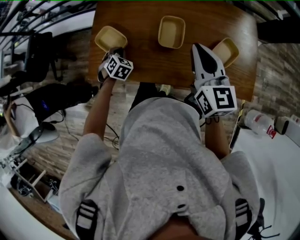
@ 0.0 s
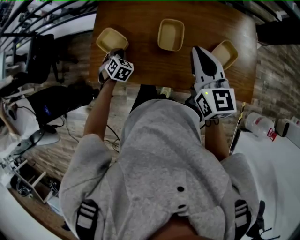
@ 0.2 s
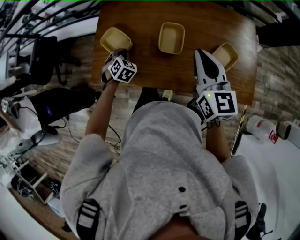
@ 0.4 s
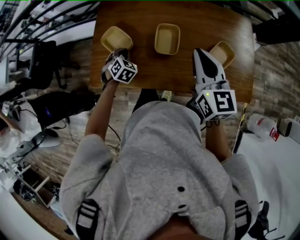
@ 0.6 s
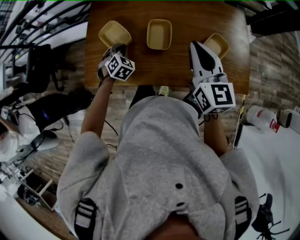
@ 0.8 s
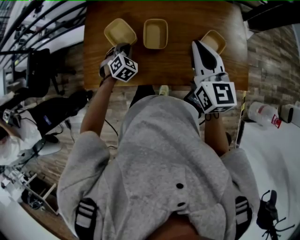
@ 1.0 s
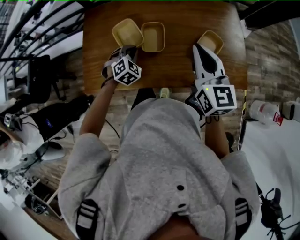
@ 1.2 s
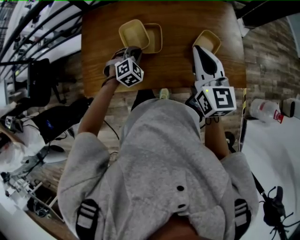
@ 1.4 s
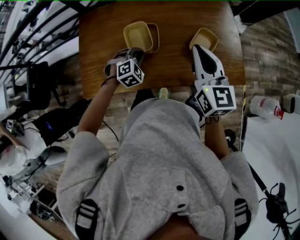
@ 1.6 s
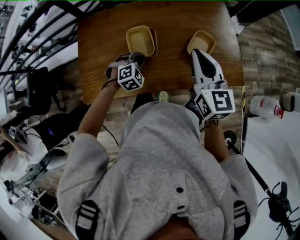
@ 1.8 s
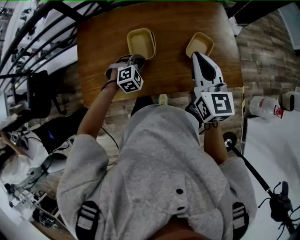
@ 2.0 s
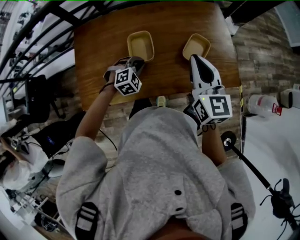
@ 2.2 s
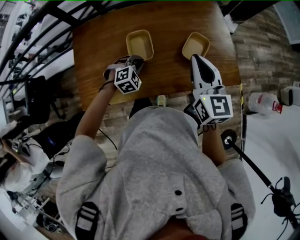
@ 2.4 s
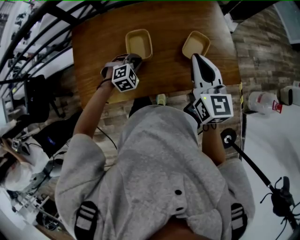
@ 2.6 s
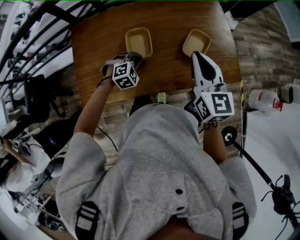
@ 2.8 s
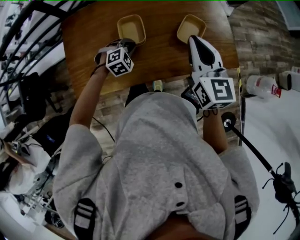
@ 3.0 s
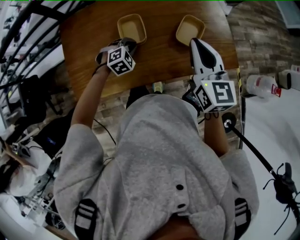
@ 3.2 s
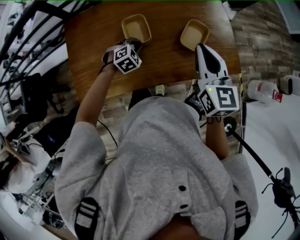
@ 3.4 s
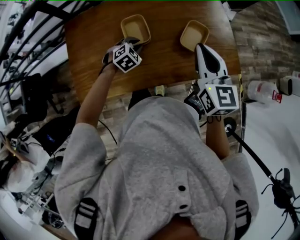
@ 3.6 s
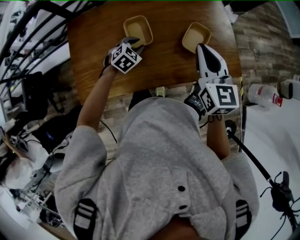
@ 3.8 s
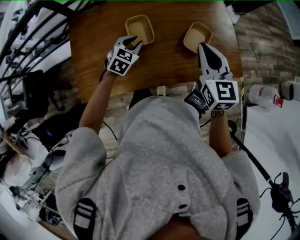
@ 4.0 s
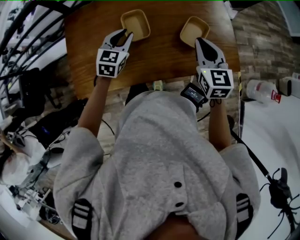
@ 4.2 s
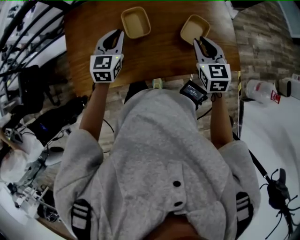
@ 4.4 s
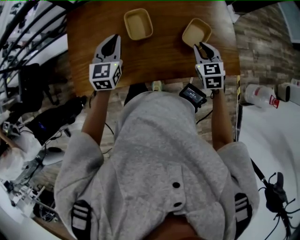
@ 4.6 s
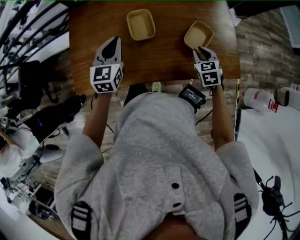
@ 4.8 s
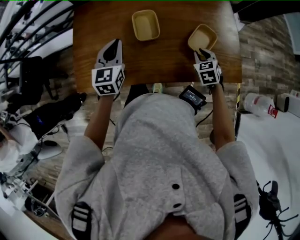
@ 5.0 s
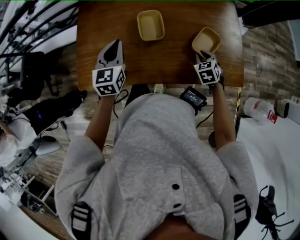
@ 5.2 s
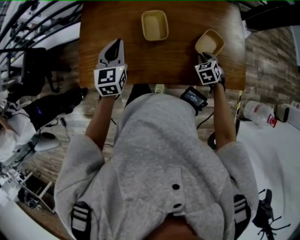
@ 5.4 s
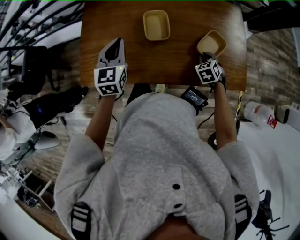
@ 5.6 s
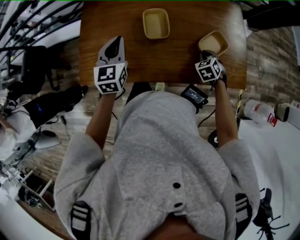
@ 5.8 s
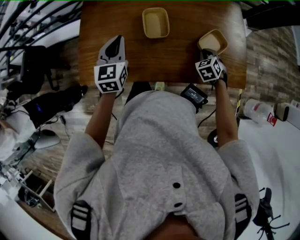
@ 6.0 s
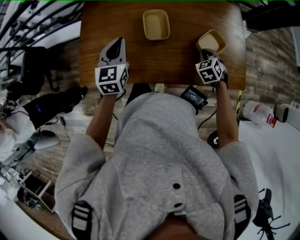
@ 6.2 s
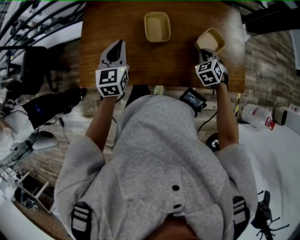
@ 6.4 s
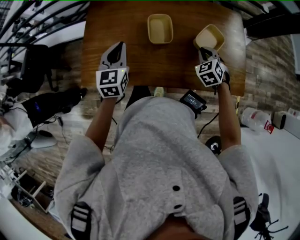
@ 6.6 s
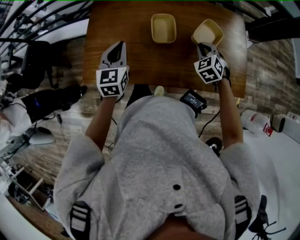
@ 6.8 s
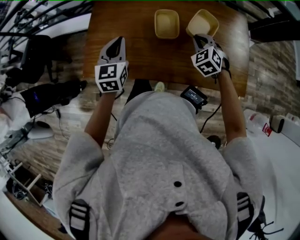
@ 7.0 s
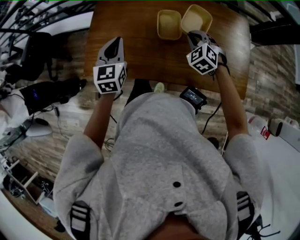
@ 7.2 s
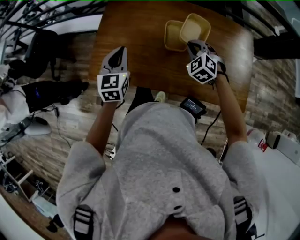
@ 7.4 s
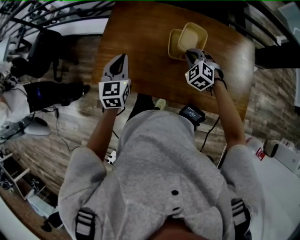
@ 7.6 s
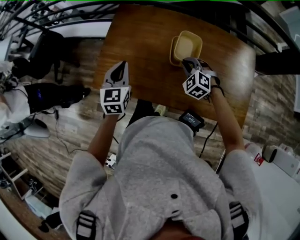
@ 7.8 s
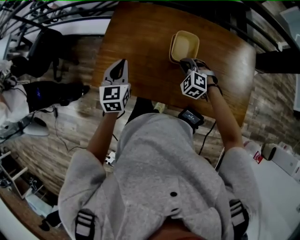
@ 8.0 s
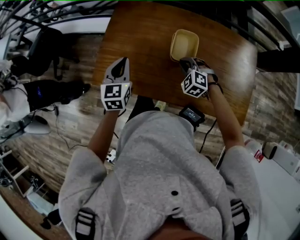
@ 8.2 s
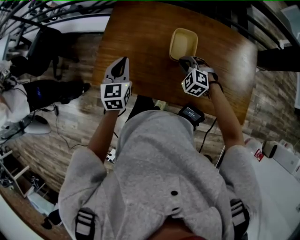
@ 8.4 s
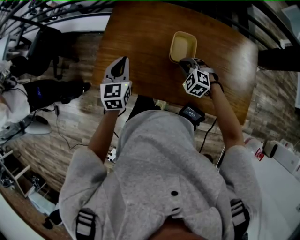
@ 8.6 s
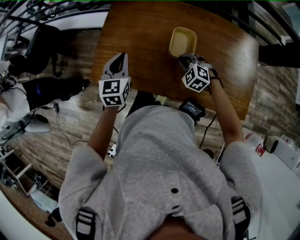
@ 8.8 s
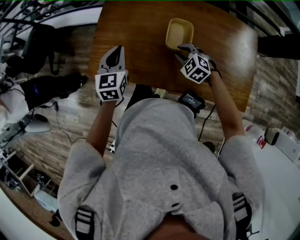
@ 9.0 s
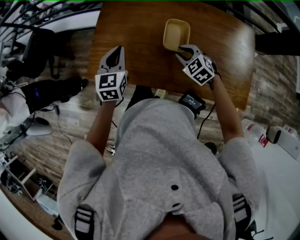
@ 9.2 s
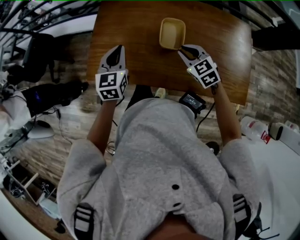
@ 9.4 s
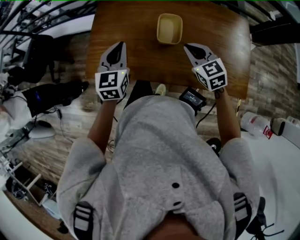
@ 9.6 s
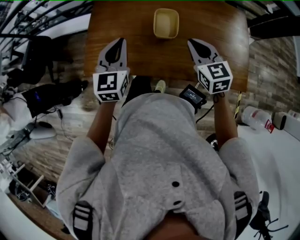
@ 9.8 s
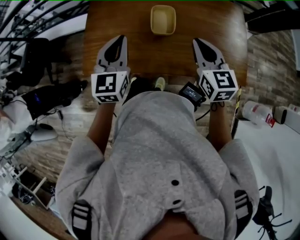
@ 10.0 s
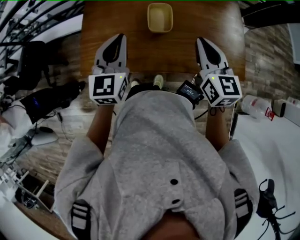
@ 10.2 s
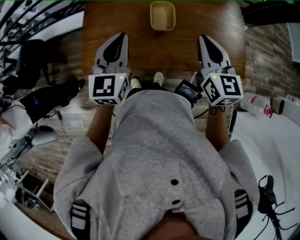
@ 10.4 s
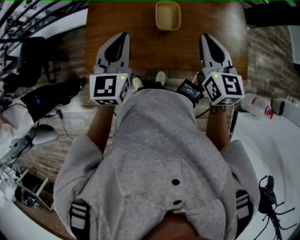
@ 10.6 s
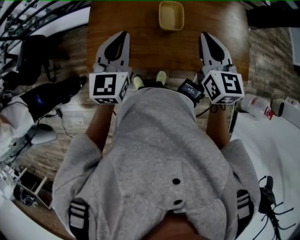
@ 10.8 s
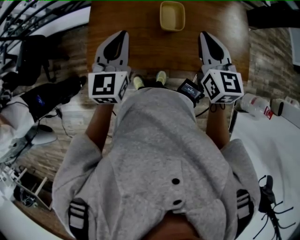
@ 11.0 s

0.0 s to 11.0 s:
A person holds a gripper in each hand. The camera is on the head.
0.0 to 1.6 s: The left gripper changes place by approximately 25 cm, and changes its angle by about 40 degrees. The right gripper moves some 15 cm.
1.6 to 3.2 s: The left gripper moves some 5 cm.
3.2 to 4.8 s: The right gripper goes about 20 cm downward, and tilts its fingers about 30 degrees downward; the left gripper goes some 20 cm upward and to the left, and tips its fingers upward by about 40 degrees.
6.2 to 7.8 s: The left gripper heads to the left, covering approximately 10 cm, while the right gripper travels to the left by approximately 20 cm, and swivels about 40 degrees.
7.8 to 9.4 s: The right gripper moves about 5 cm, and rotates about 30 degrees.
9.4 to 11.0 s: The right gripper moves upward, some 20 cm, and turns by some 40 degrees. The left gripper heads upward, covering roughly 10 cm.

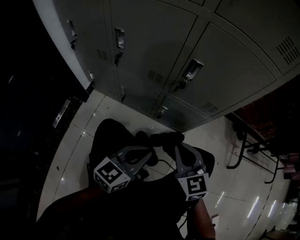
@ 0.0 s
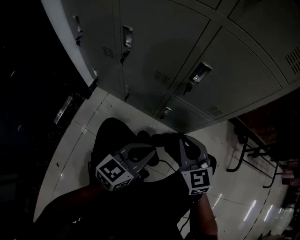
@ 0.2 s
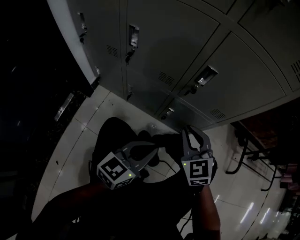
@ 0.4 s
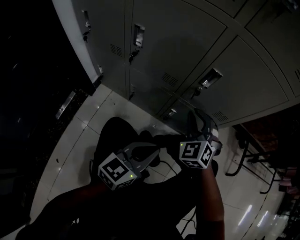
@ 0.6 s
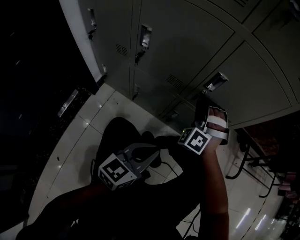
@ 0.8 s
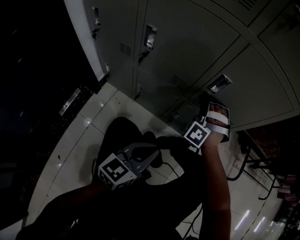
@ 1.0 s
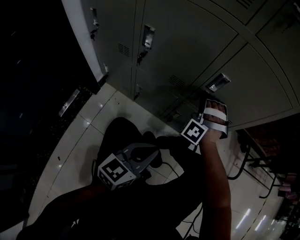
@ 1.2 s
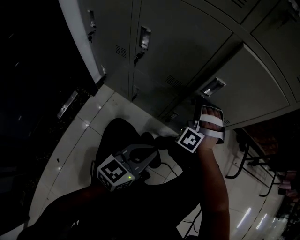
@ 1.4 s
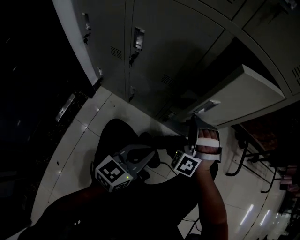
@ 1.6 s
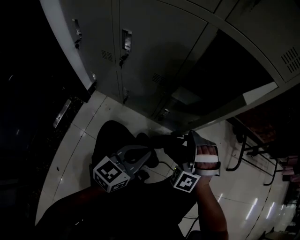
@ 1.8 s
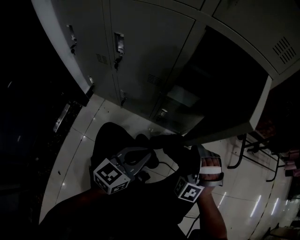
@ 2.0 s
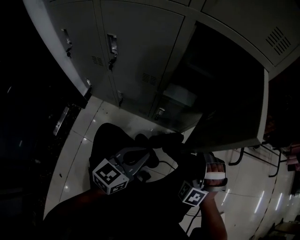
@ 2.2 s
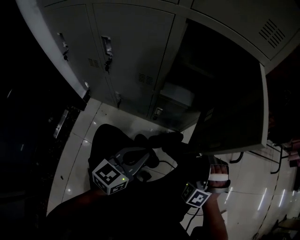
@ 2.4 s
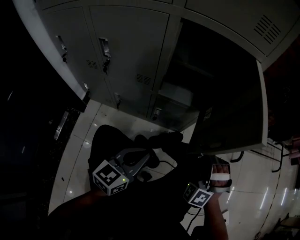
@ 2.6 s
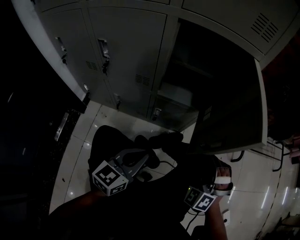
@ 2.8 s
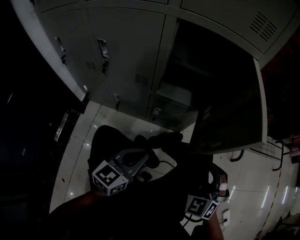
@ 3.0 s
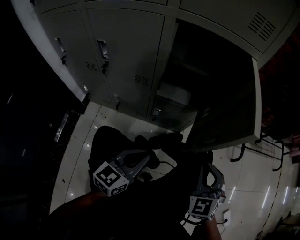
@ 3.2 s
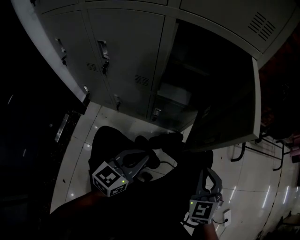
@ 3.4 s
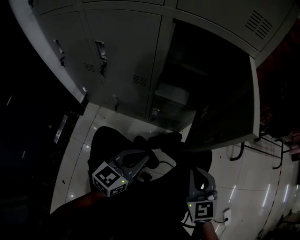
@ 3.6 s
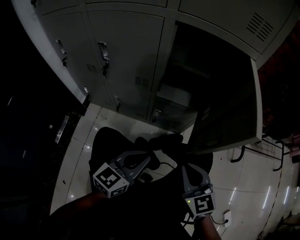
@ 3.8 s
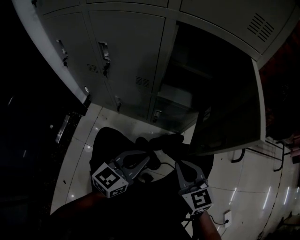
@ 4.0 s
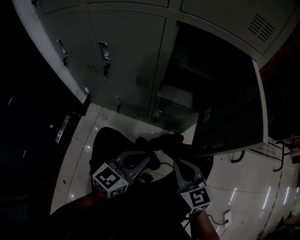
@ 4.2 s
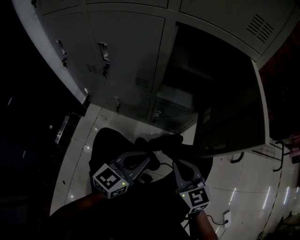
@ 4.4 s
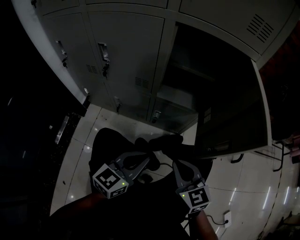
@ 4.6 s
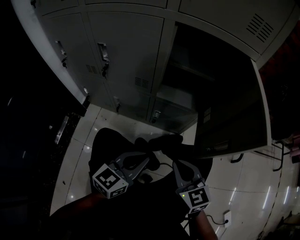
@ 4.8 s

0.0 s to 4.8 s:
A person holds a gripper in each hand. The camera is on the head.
0.0 to 1.6 s: The right gripper moves forward, some 10 cm, rotates around the line of its fingers by about 70 degrees, counterclockwise from behind, and opens and closes again.
1.6 to 3.2 s: The right gripper travels to the right and backward by about 25 cm, and rolls clockwise, seen from behind, by about 50 degrees. The left gripper is displaced to the right by some 5 cm.
3.2 to 4.8 s: The right gripper moves to the left, approximately 10 cm, and turns by about 40 degrees.

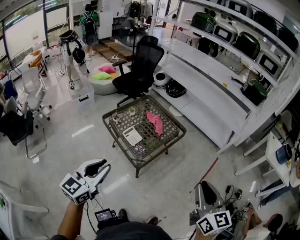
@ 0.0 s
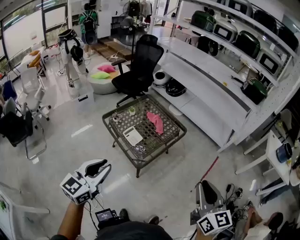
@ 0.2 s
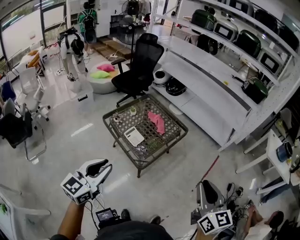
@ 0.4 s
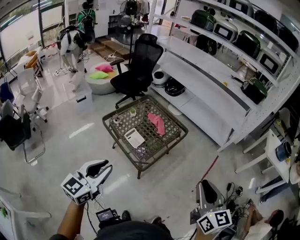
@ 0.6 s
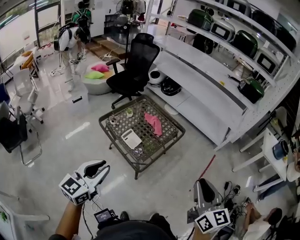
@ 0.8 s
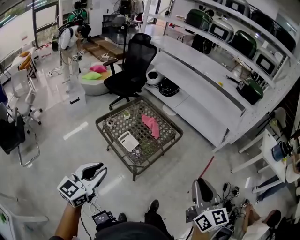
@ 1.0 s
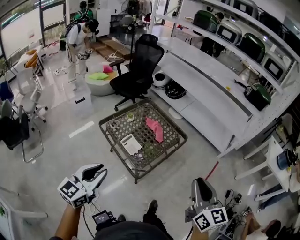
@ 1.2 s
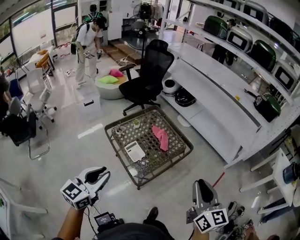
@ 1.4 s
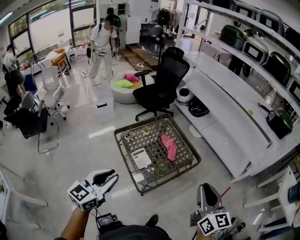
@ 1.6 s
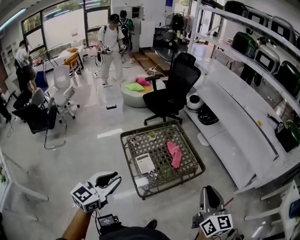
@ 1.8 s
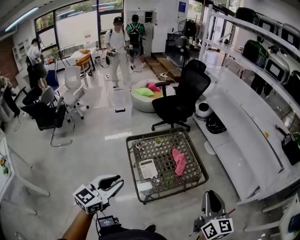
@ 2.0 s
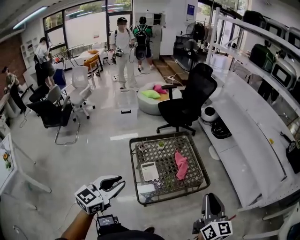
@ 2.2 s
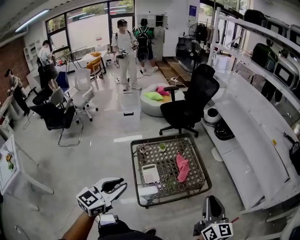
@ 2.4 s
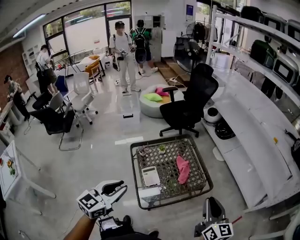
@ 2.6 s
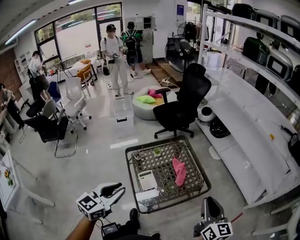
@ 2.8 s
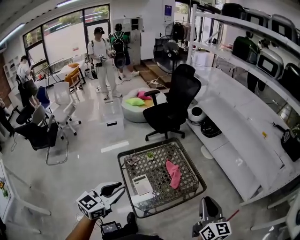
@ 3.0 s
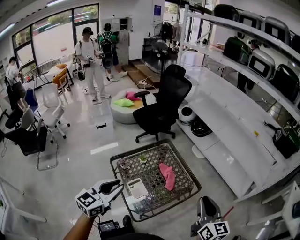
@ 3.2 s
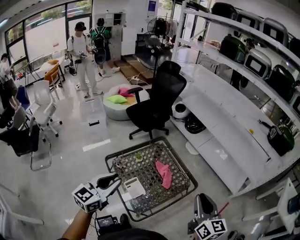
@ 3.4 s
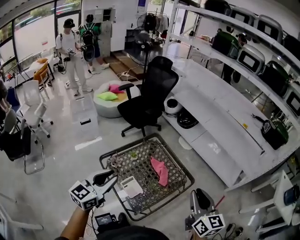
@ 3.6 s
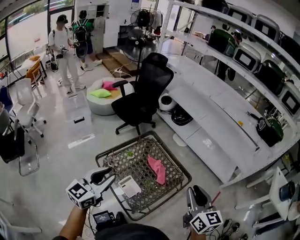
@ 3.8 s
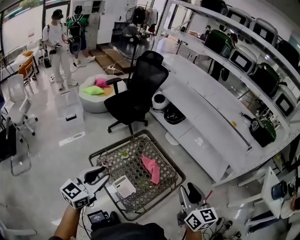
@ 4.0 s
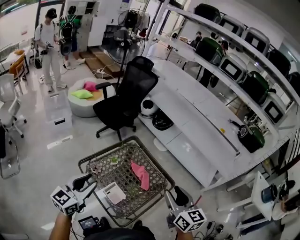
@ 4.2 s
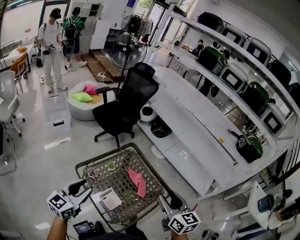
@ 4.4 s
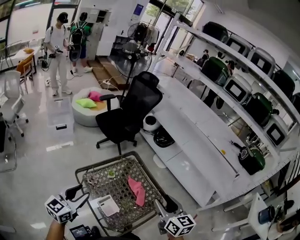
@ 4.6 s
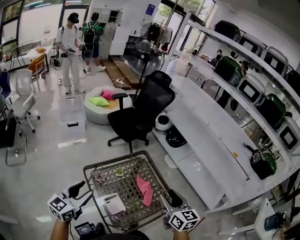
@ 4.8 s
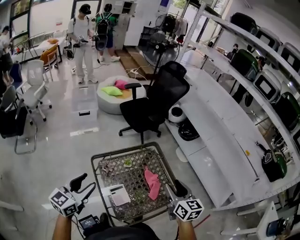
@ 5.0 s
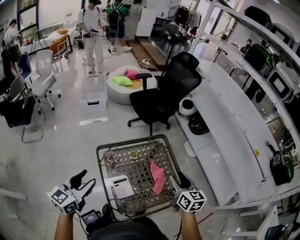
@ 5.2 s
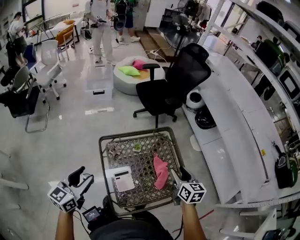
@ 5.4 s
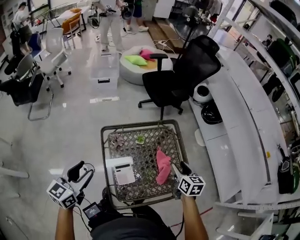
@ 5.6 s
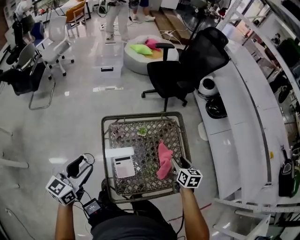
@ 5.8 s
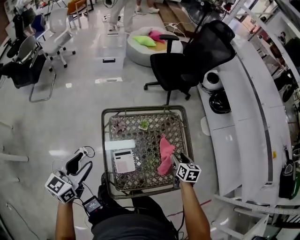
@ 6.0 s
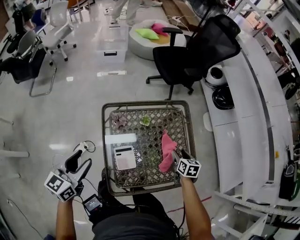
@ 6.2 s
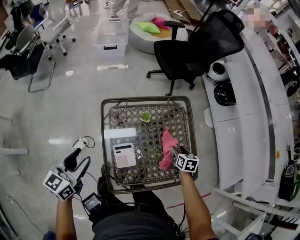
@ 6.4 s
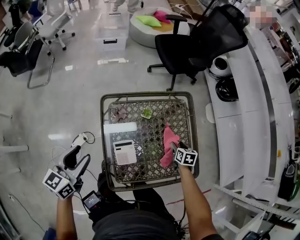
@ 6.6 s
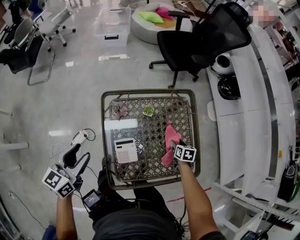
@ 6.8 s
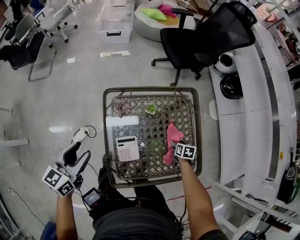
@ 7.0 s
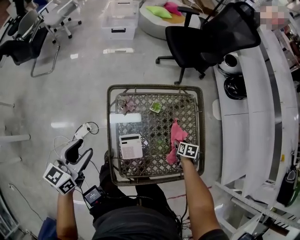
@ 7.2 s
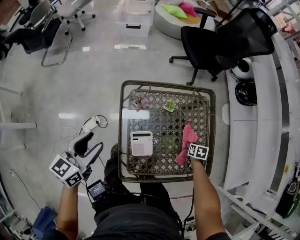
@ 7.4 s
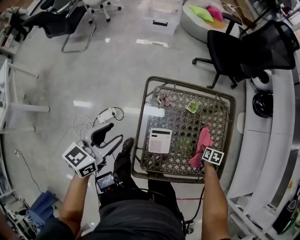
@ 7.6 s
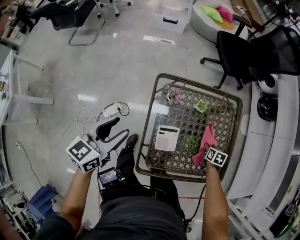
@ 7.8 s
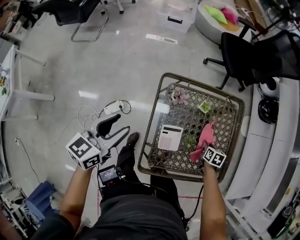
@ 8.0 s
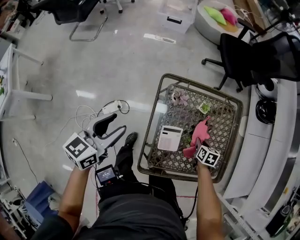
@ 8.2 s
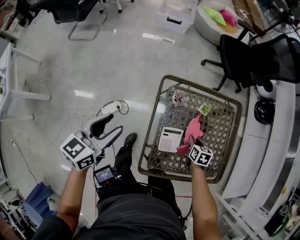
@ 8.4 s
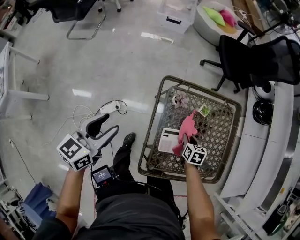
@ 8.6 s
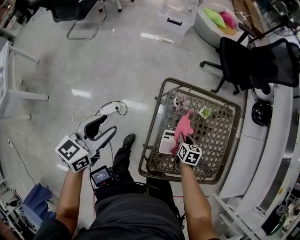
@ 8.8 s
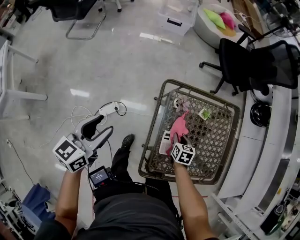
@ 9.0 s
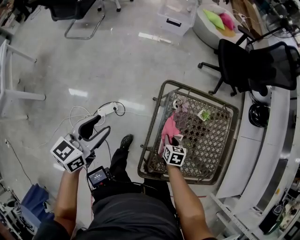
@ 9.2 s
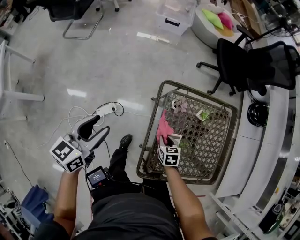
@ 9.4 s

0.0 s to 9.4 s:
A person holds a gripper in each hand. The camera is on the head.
0.0 to 1.6 s: The left gripper heads forward, covering approximately 15 cm; the right gripper shifts roughly 25 cm forward.
1.6 to 3.2 s: The two grippers go about 15 cm forward.
3.2 to 4.8 s: Both grippers travel together to the left and forward, some 20 cm. The right gripper opens its fingers.
4.8 to 6.2 s: The left gripper shifts about 10 cm downward, and swivels some 30 degrees. Meanwhile the right gripper goes roughly 35 cm downward and forward, and points its fingers approximately 30 degrees further downward.
6.2 to 7.8 s: The left gripper goes some 5 cm to the left. The right gripper is displaced downward by approximately 15 cm, and closes.
7.8 to 9.4 s: The left gripper heads to the left, covering approximately 15 cm; the right gripper heads to the left, covering some 30 cm, and swivels roughly 20 degrees.
